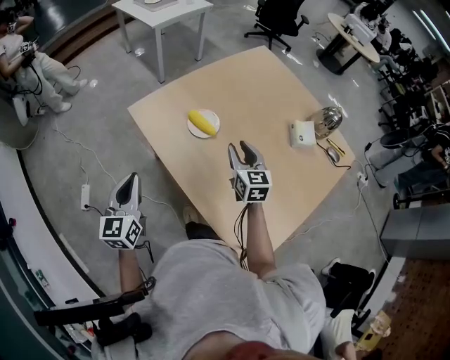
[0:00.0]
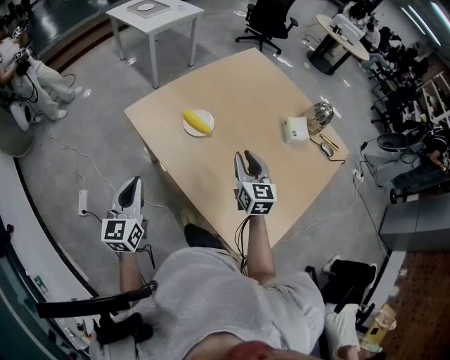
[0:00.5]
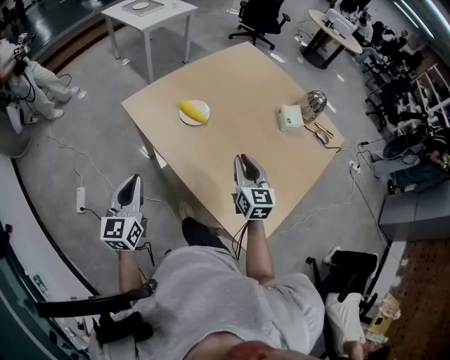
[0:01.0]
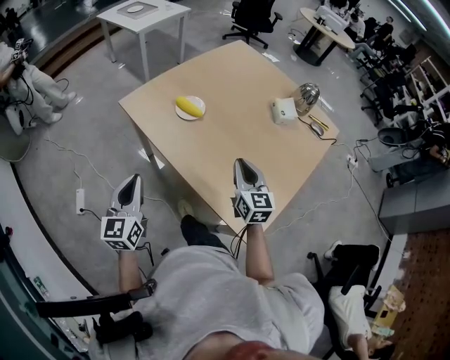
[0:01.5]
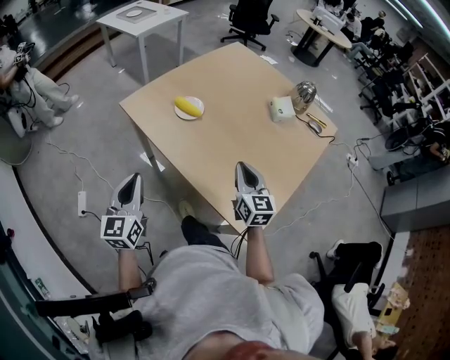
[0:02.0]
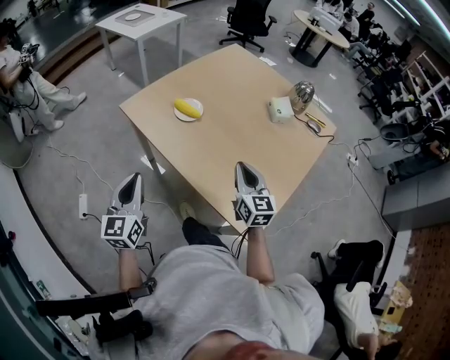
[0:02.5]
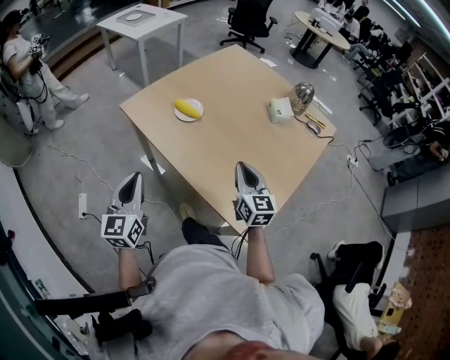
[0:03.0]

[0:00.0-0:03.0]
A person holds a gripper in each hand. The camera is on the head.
0.0 to 1.5 s: The right gripper heads backward, covering roughly 20 cm, and closes, while the left gripper shifts roughly 10 cm backward.
1.5 to 3.0 s: The grippers stay close to where they were, moving slightly.

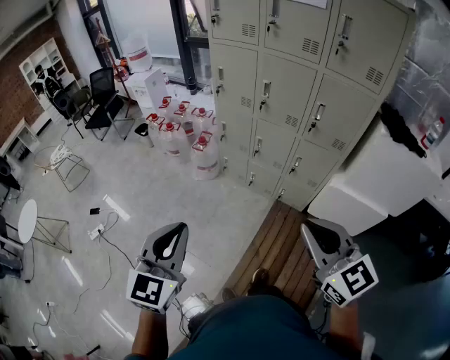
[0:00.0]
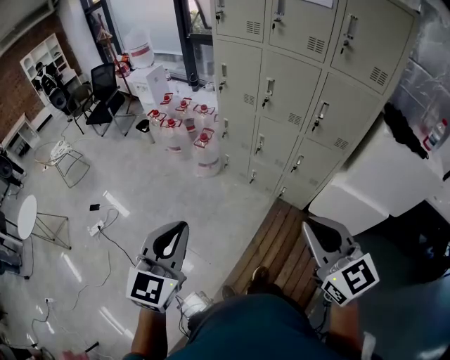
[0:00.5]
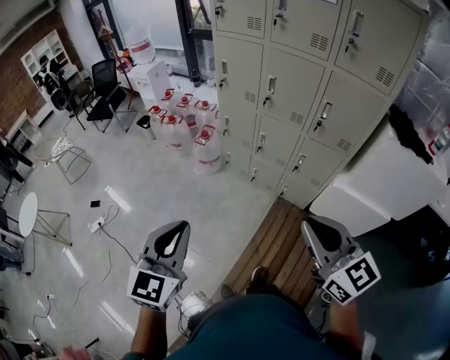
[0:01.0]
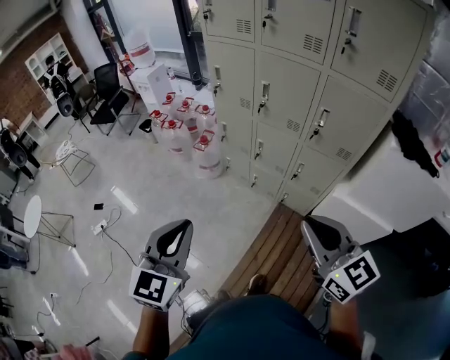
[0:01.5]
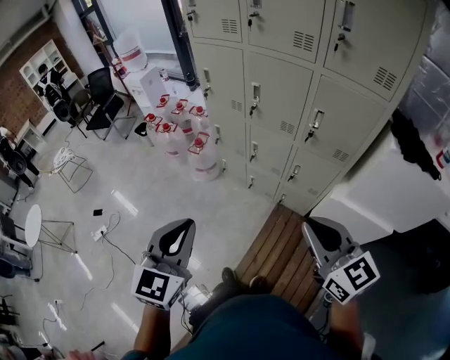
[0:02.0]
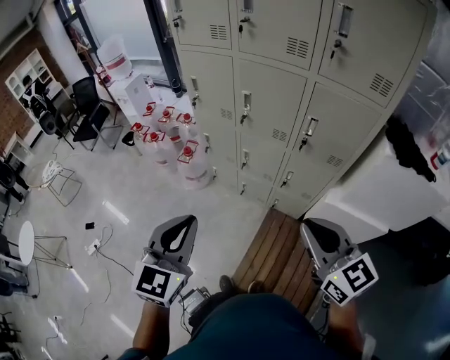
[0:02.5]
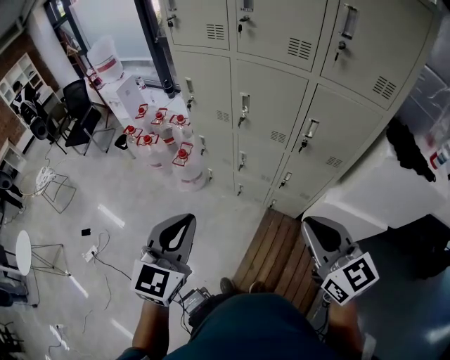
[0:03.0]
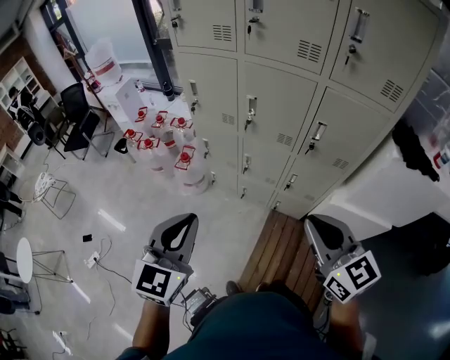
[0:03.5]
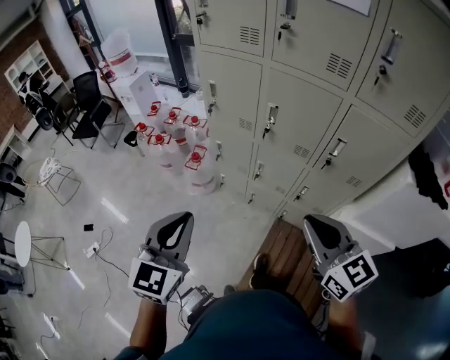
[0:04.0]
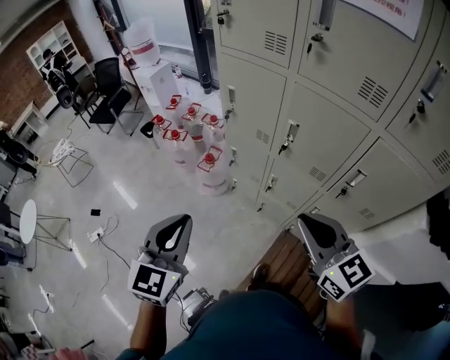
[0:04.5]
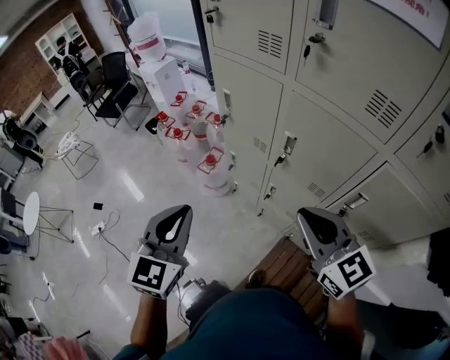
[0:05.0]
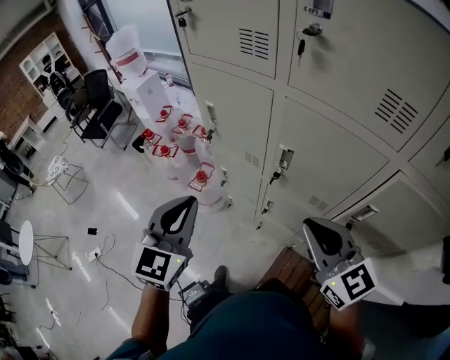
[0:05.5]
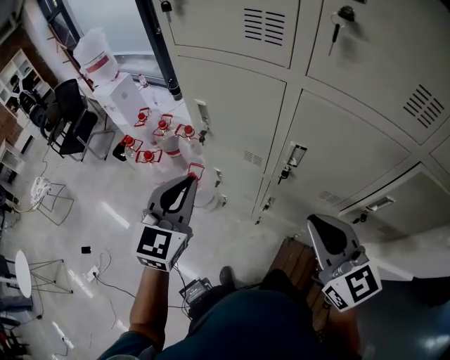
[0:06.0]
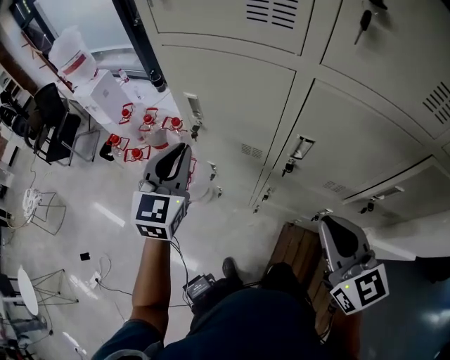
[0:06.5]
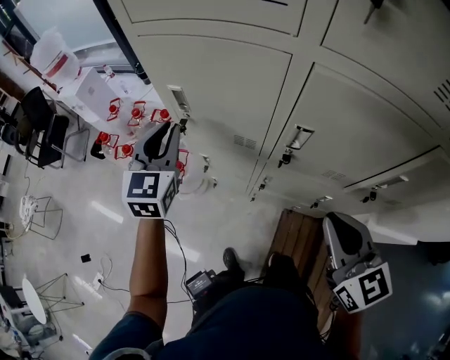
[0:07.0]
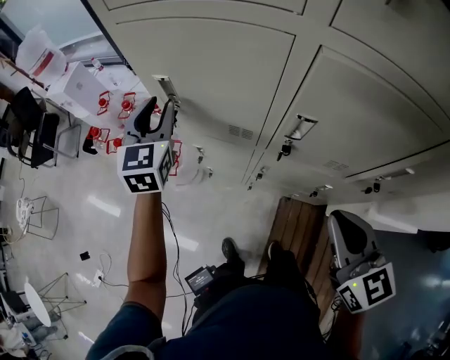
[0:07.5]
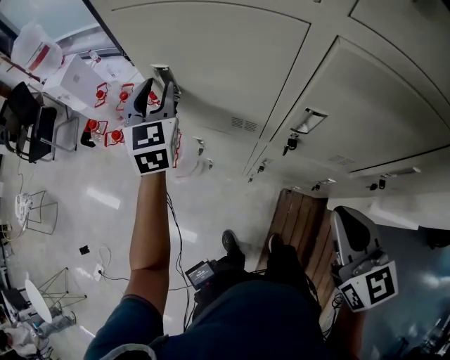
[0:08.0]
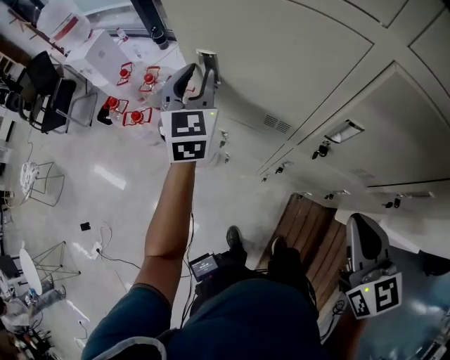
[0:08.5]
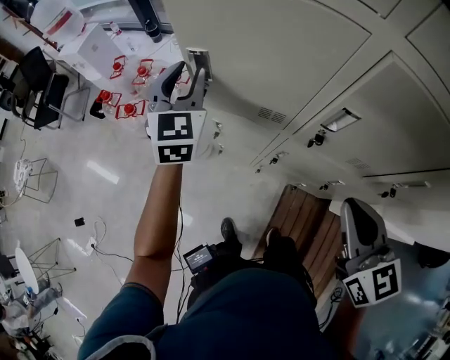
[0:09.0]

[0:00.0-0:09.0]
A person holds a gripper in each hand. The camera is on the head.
0.0 to 2.0 s: The two grippers go roughly 20 cm forward and to the right.
2.0 to 4.5 s: Both grippers travel together forward, some 30 cm.
4.5 to 7.0 s: The right gripper travels forward and downward by roughly 25 cm, and rotates some 30 degrees; the left gripper is displaced forward by roughly 50 cm.
7.0 to 9.0 s: The left gripper shifts approximately 5 cm forward, and opens up.

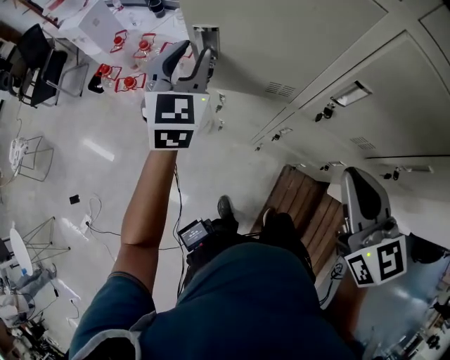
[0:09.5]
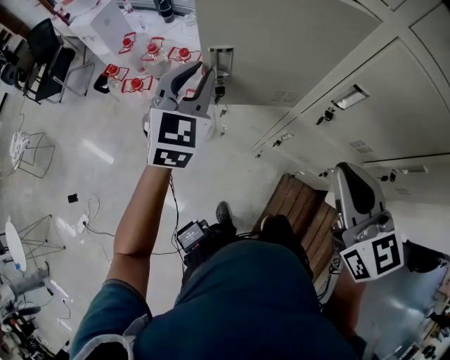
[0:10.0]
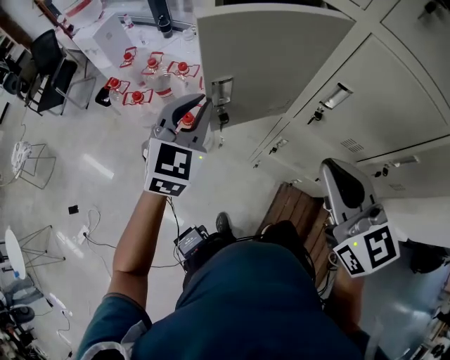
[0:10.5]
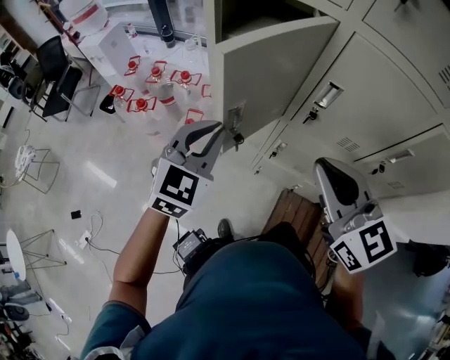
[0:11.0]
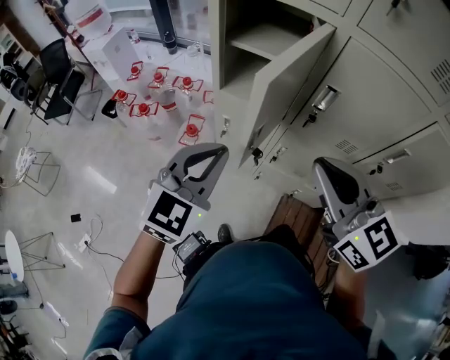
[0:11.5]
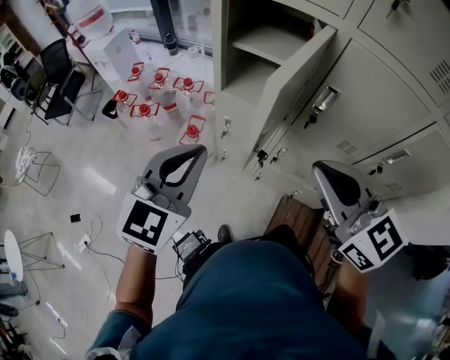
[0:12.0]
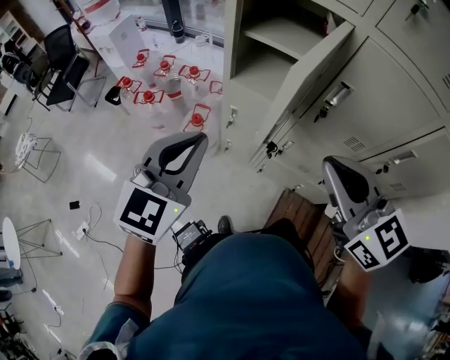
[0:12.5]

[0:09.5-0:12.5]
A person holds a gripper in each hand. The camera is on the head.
9.5 to 11.0 s: The left gripper shifts approximately 20 cm backward, swivels approximately 20 degrees, and closes its fingers. The right gripper moves backward, to the left and upward, about 10 cm.
11.0 to 12.5 s: The left gripper travels backward, to the left and upward by some 10 cm.

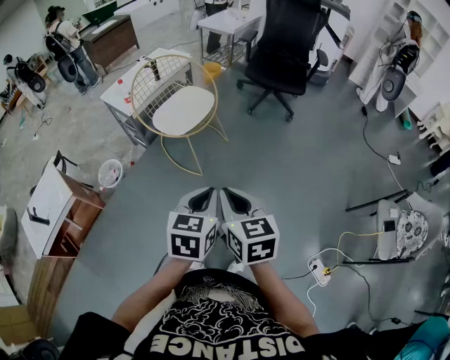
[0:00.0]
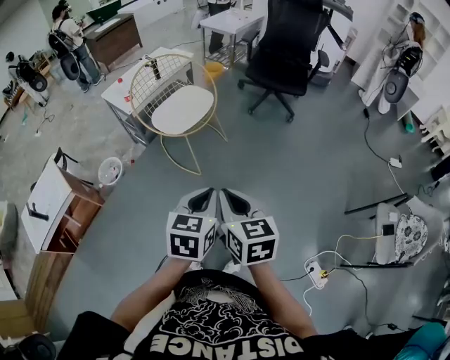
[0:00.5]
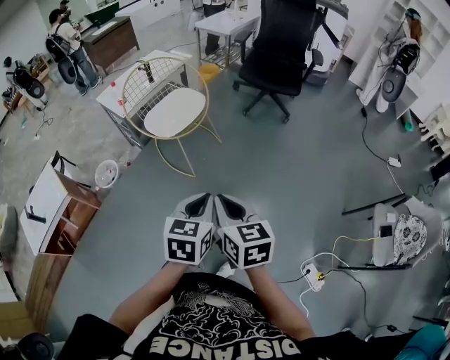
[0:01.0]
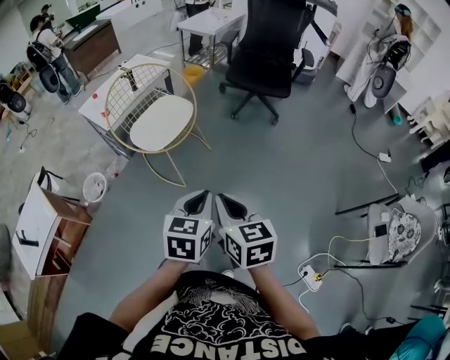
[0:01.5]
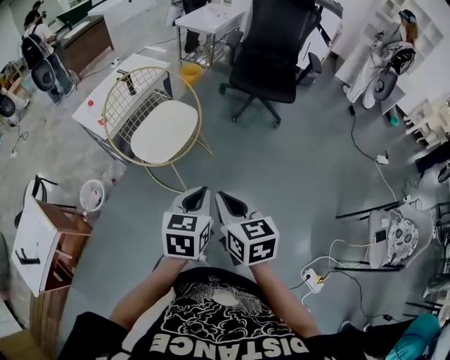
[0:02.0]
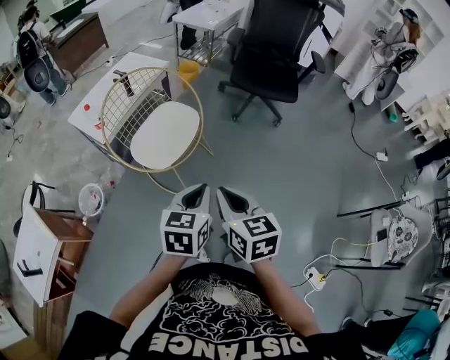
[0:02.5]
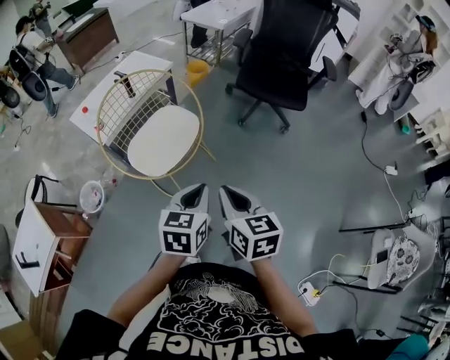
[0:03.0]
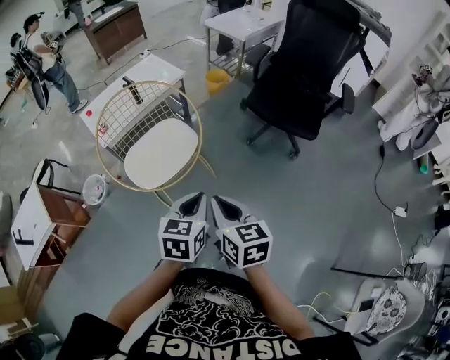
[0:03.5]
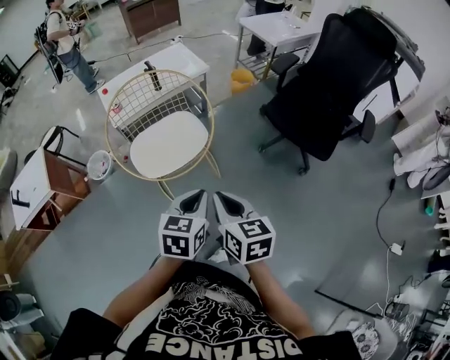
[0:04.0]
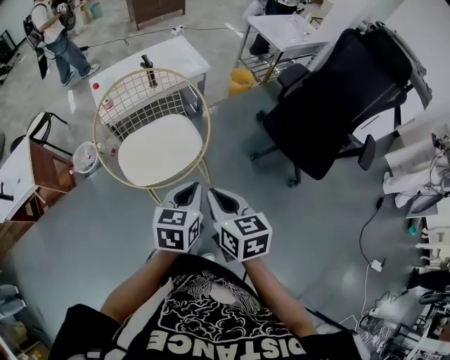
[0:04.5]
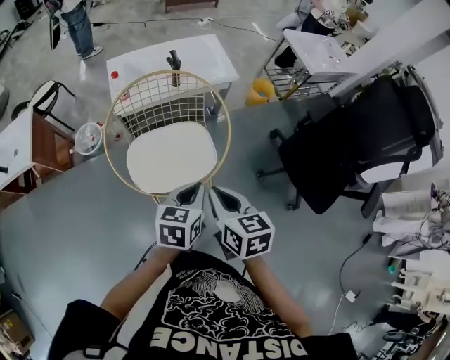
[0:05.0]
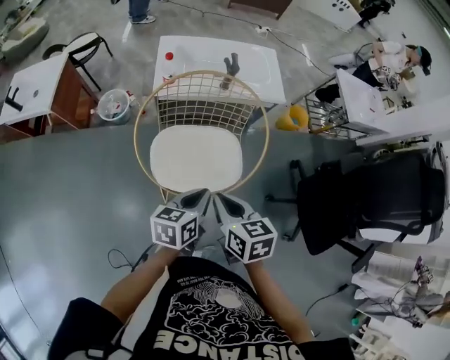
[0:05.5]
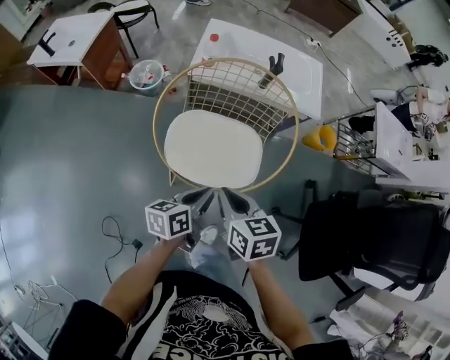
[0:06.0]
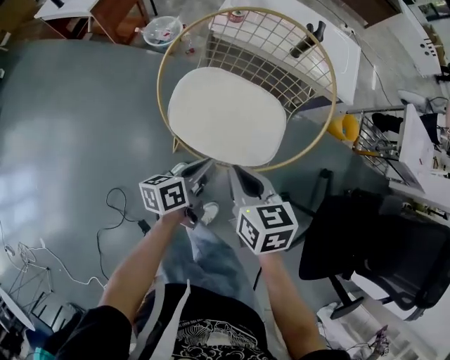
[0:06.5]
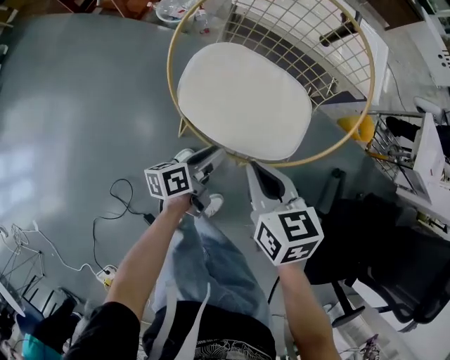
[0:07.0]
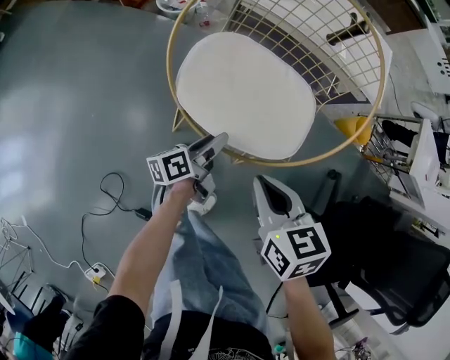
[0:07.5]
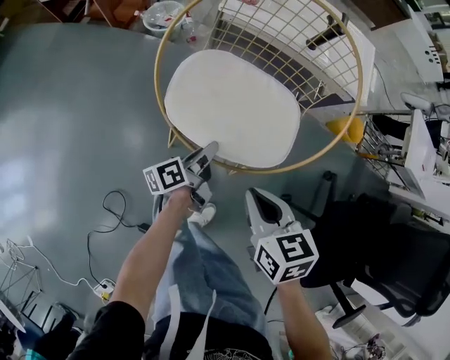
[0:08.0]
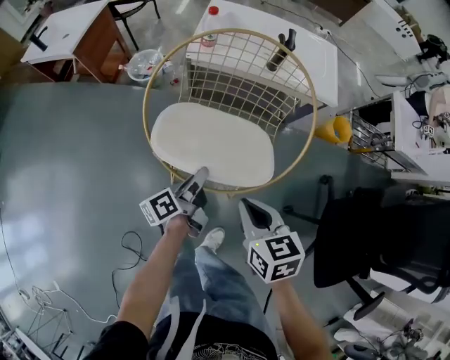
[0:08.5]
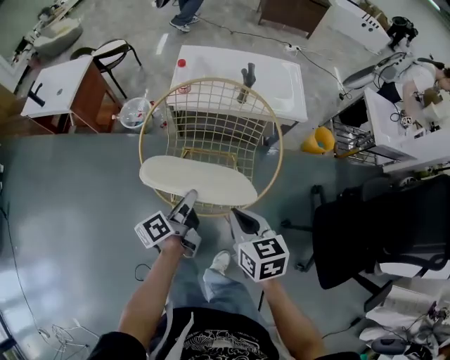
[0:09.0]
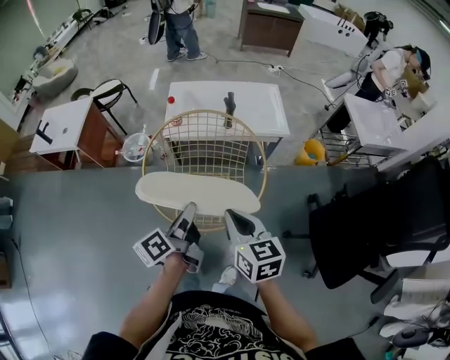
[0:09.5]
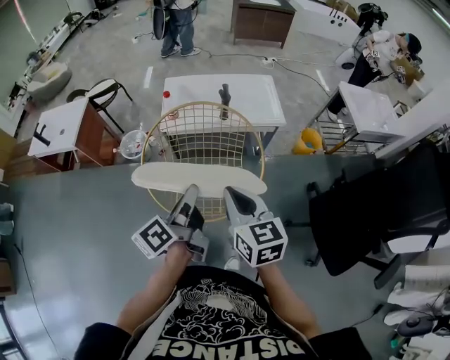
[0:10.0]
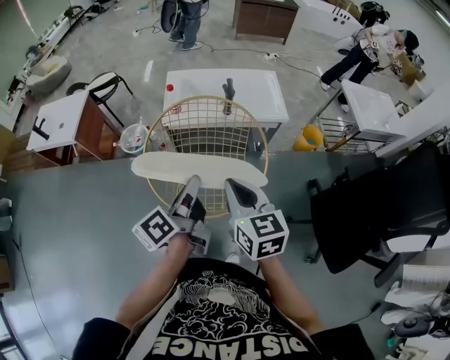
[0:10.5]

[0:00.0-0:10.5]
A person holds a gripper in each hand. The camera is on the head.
0.0 to 2.0 s: Both grippers travel together forward, about 15 cm.
2.0 to 4.0 s: The left gripper moves about 20 cm, and changes its angle by roughly 20 degrees. The right gripper moves some 25 cm, and swivels approximately 30 degrees.
4.0 to 6.5 s: The right gripper moves approximately 30 cm, and turns by about 50 degrees. Meanwhile the left gripper travels downward by about 20 cm, and rotates around the line of its fingers by roughly 60 degrees, counterclockwise from behind.
6.5 to 8.5 s: The left gripper moves approximately 10 cm downward and comes back, and opens and closes again. Meanwhile the right gripper moves about 5 cm.
8.5 to 10.5 s: The left gripper moves upward, roughly 25 cm, while the right gripper travels upward and forward by approximately 20 cm, and rotates approximately 30 degrees.

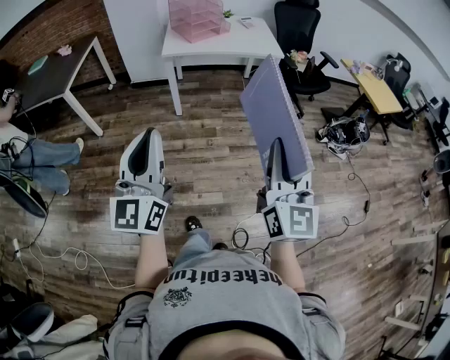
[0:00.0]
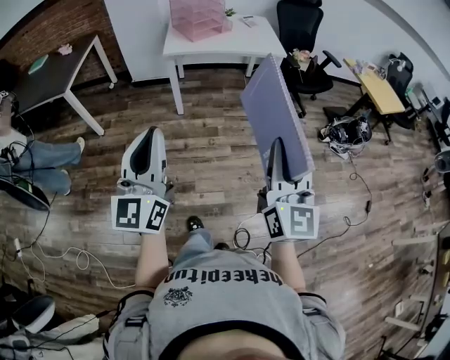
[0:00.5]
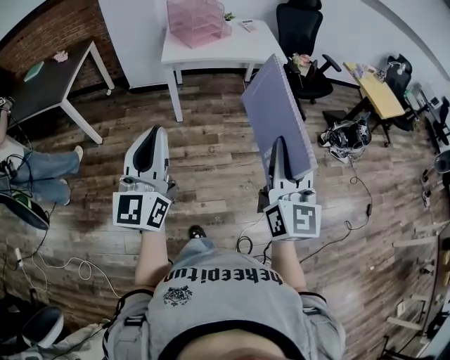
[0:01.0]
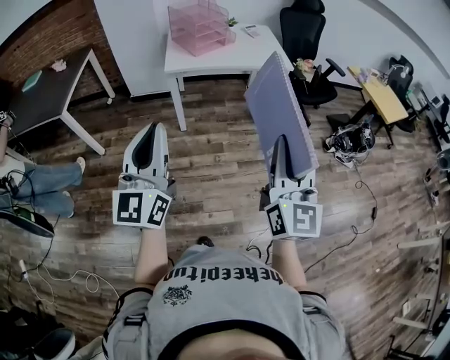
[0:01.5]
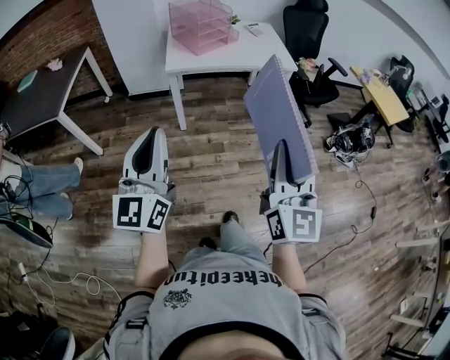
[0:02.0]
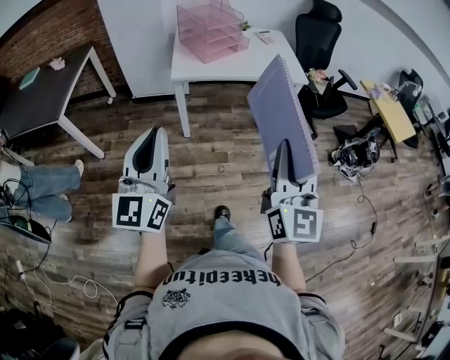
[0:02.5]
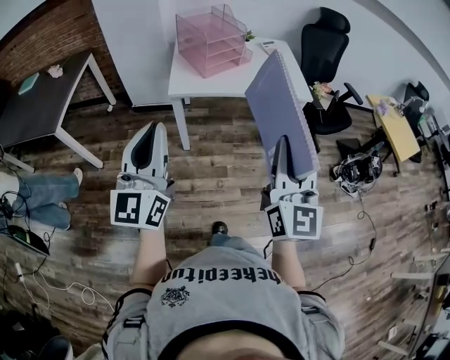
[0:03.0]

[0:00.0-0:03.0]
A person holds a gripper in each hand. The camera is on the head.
0.0 to 1.5 s: Both grippers move forward and to the left, about 15 cm.
1.5 to 3.0 s: Both grippers move forward, some 25 cm.
